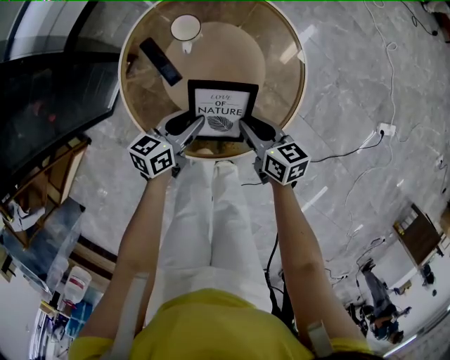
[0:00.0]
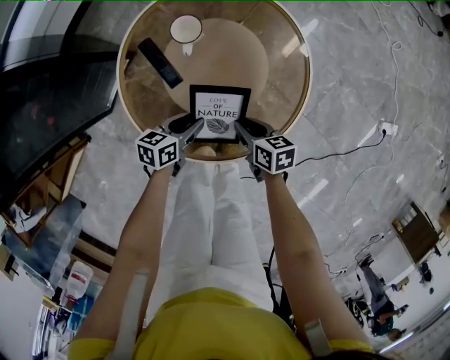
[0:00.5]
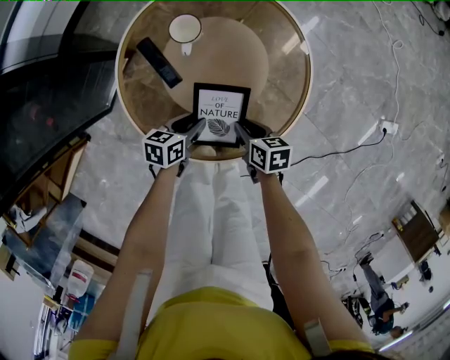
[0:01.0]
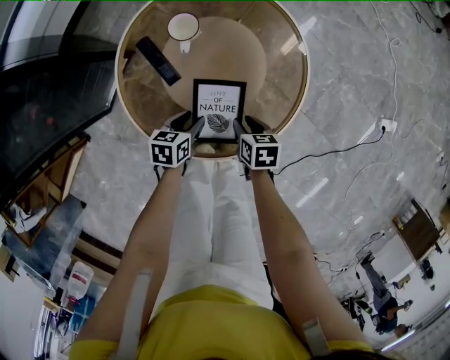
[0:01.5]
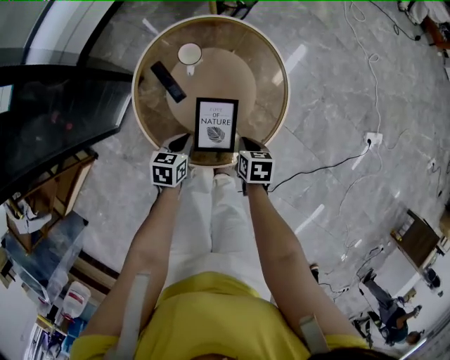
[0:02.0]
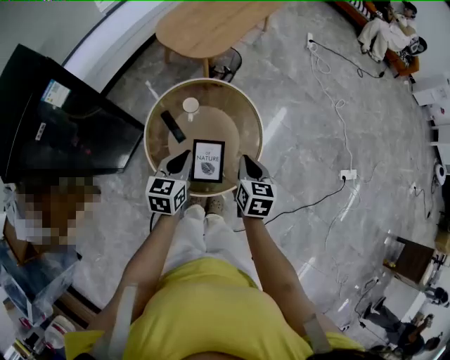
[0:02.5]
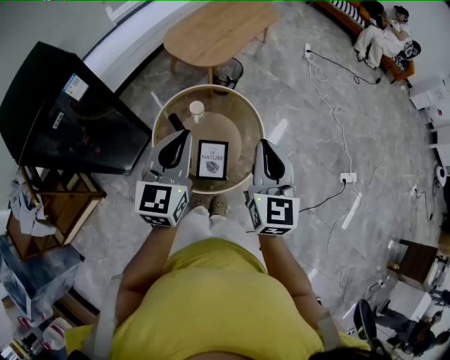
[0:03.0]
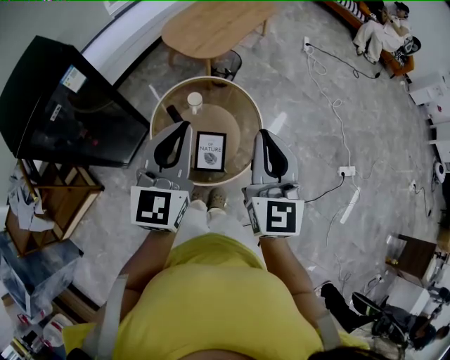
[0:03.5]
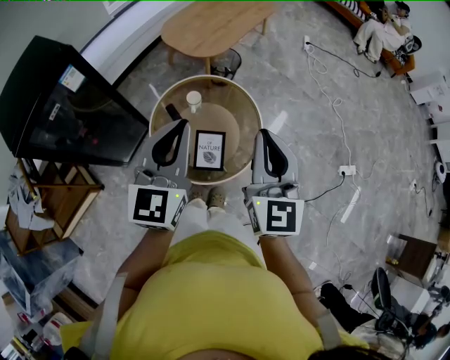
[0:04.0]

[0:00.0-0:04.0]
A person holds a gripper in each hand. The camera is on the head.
0:00.0 to 0:02.0: The right gripper moves about 10 cm downward and comes back, and turns by about 30 degrees; the left gripper goes downward and returns, approximately 10 cm each way, turns by roughly 30 degrees, and closes its fingers.
0:02.0 to 0:04.0: The two grippers go about 50 cm upward. The left gripper angles its fingers upward, by some 50 degrees; the right gripper tilts its fingers some 60 degrees upward.

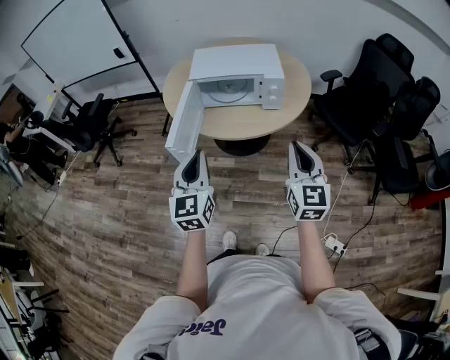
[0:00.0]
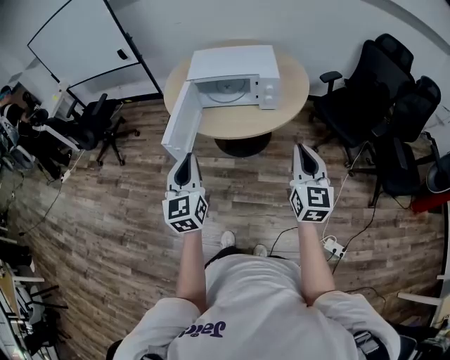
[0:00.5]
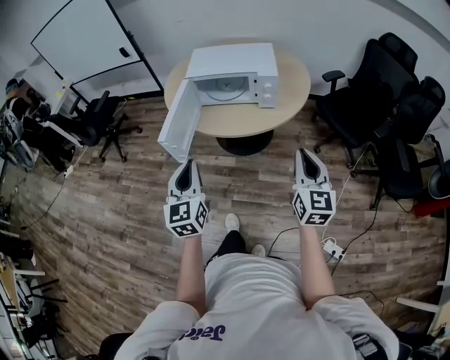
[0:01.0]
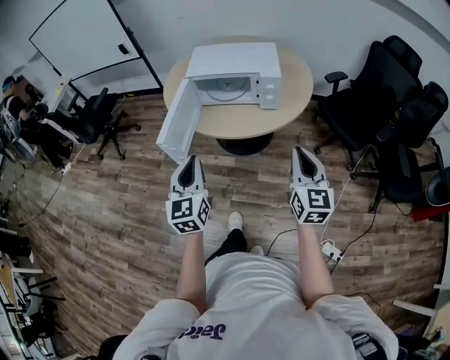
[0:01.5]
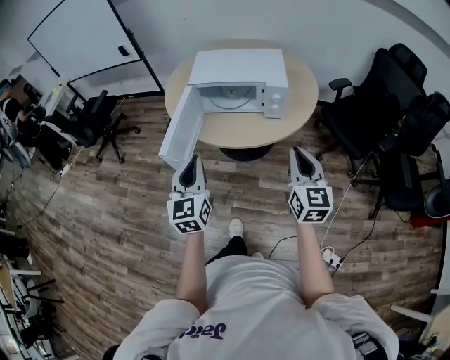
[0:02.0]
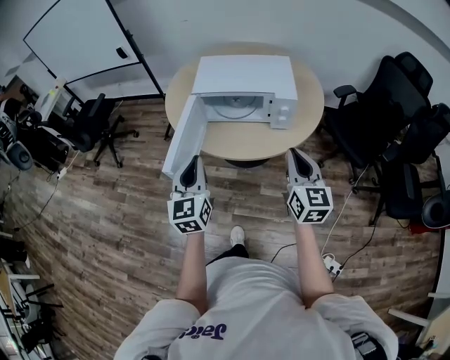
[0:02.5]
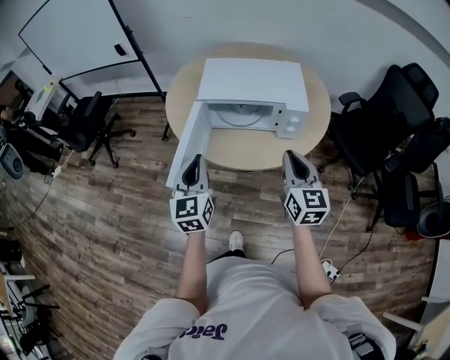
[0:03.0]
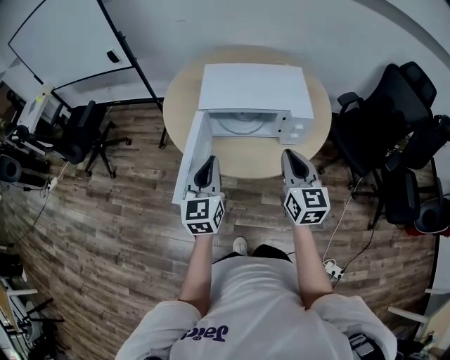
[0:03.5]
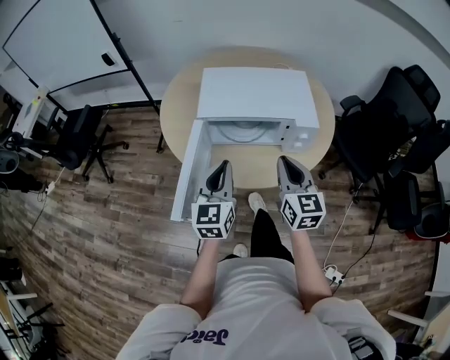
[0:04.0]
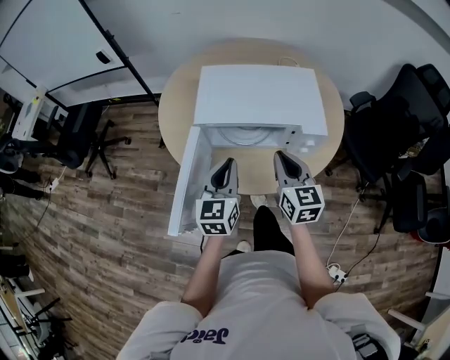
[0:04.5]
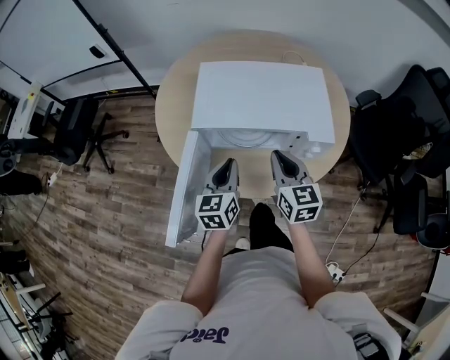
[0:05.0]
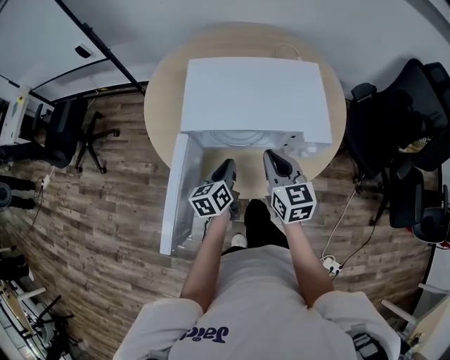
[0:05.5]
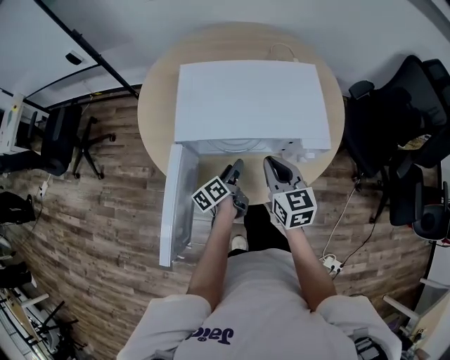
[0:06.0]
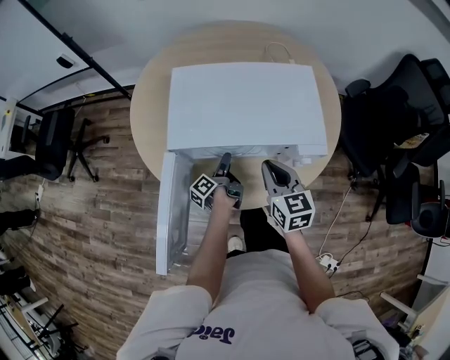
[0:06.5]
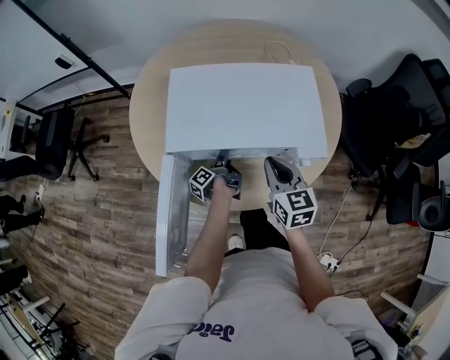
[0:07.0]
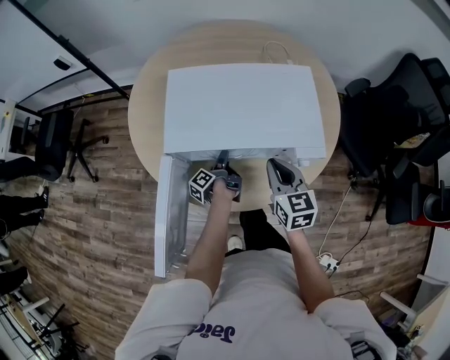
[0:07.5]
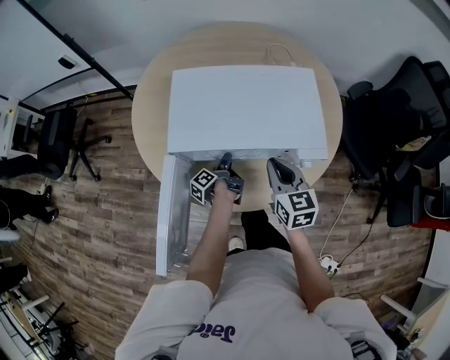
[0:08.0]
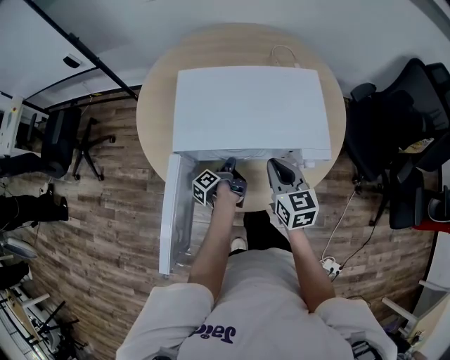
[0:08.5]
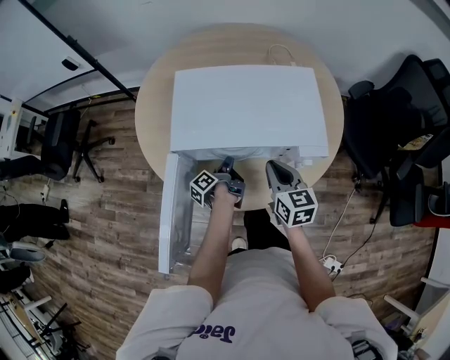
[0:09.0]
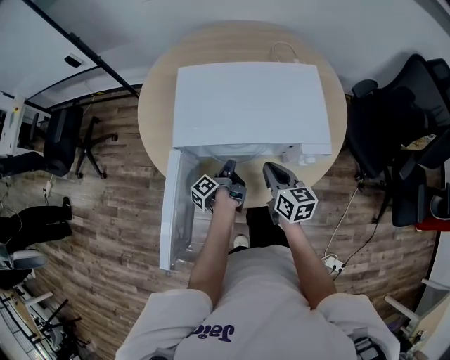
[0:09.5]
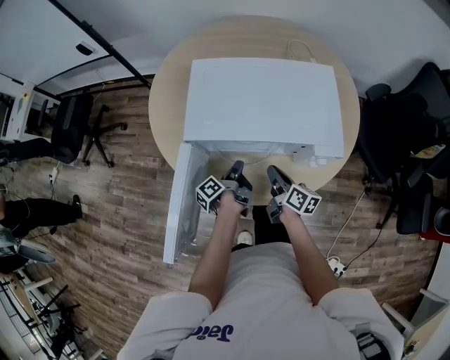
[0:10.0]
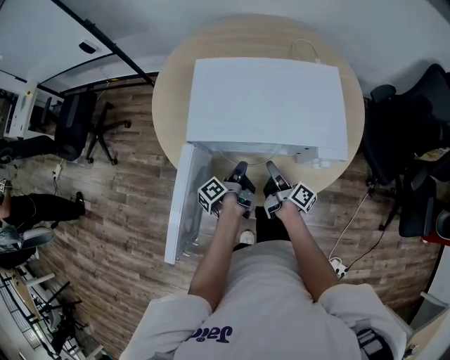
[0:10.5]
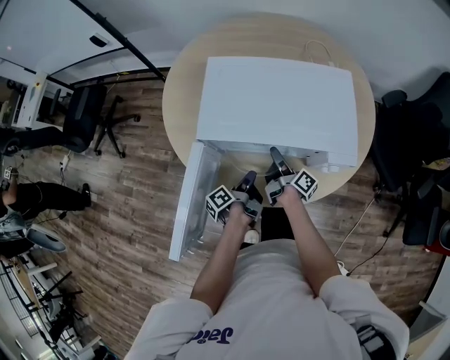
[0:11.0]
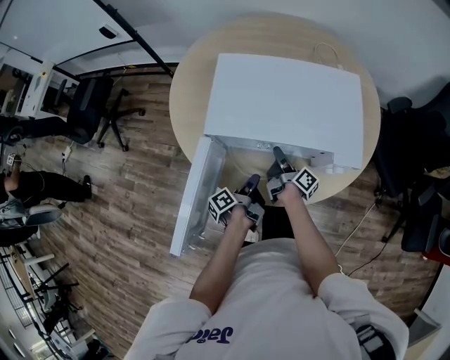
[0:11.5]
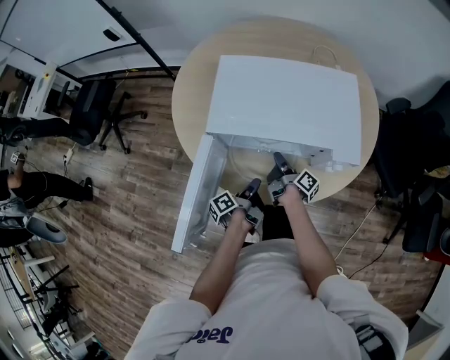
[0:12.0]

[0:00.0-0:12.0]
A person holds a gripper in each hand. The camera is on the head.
0:00.0 to 0:02.0: The right gripper moves about 10 cm.
0:02.0 to 0:04.0: The right gripper shifts by approximately 25 cm.
0:04.0 to 0:06.0: The right gripper moves some 15 cm.
0:08.0 to 0:10.0: The right gripper travels downward by roughly 15 cm, and rolls clockwise, seen from behind, by about 50 degrees.
0:10.0 to 0:12.0: The right gripper shifts by approximately 10 cm, swivels approximately 40 degrees, and opens and closes again.

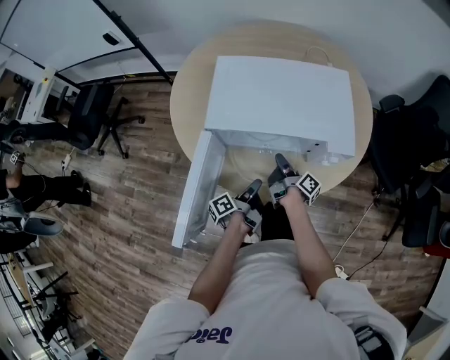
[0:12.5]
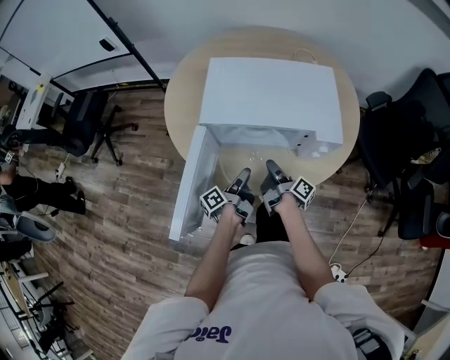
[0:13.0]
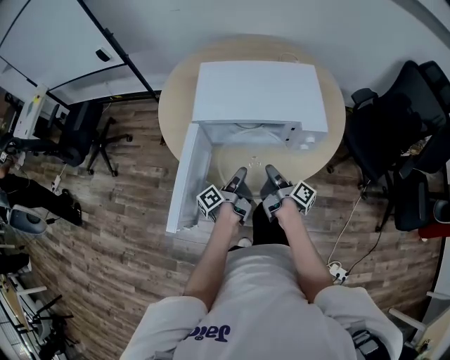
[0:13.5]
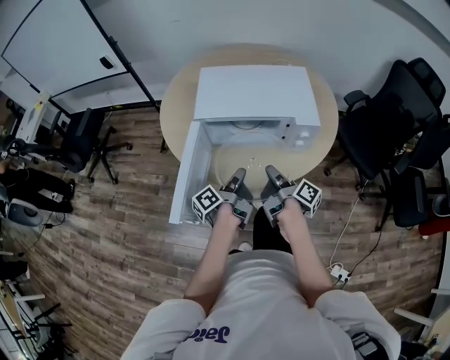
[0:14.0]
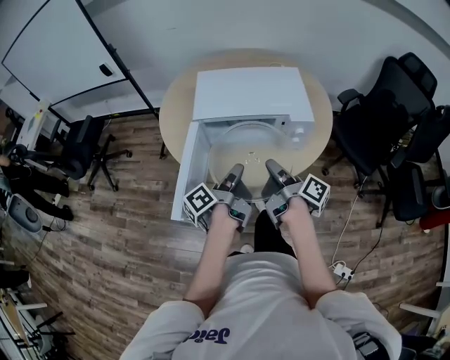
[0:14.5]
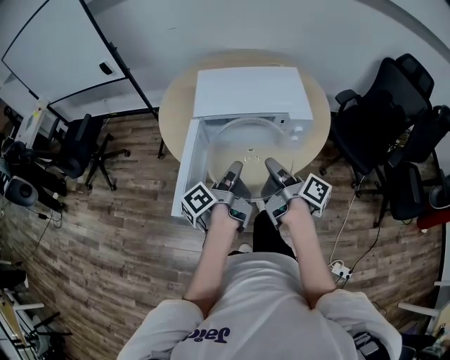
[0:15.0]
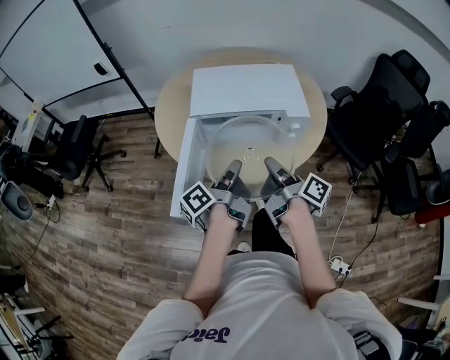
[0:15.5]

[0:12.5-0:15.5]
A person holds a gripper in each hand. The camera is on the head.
0:12.5 to 0:14.0: The right gripper moves some 20 cm.
0:14.0 to 0:15.5: The right gripper heads upward, covering some 10 cm.

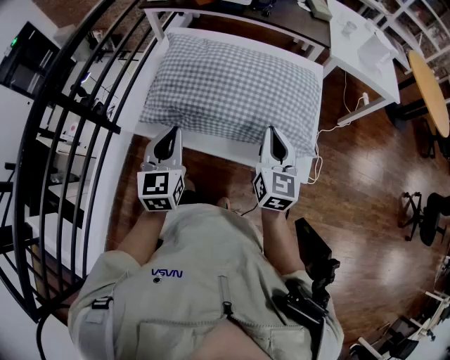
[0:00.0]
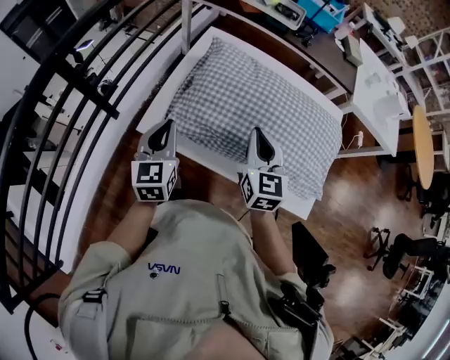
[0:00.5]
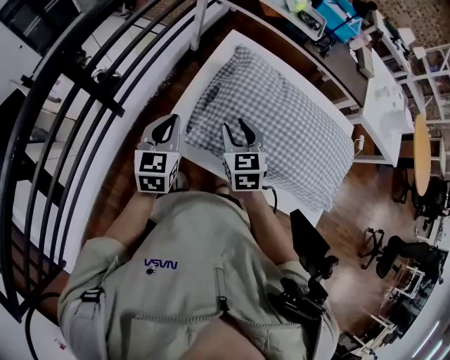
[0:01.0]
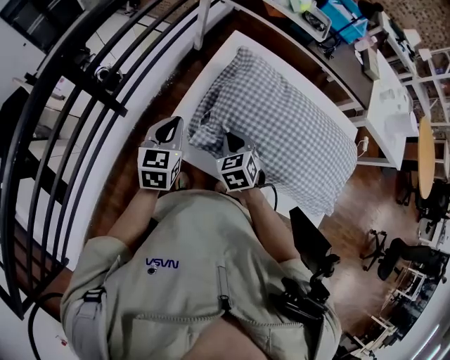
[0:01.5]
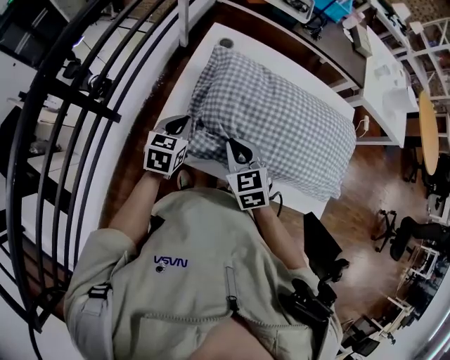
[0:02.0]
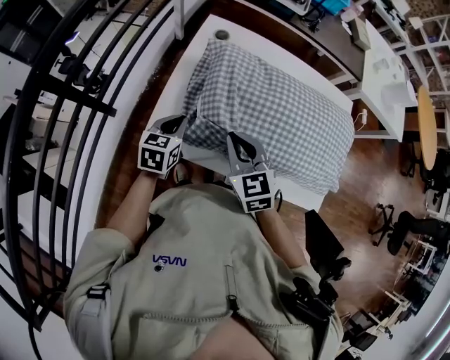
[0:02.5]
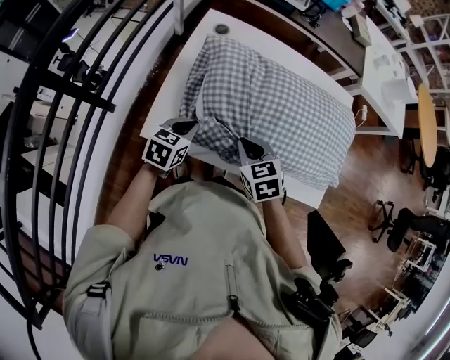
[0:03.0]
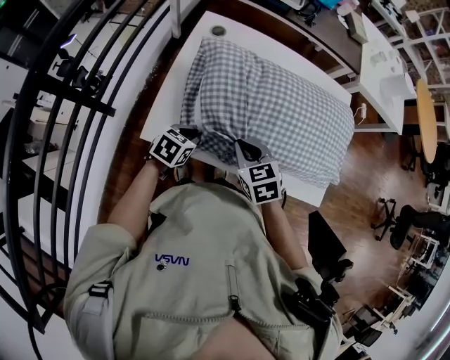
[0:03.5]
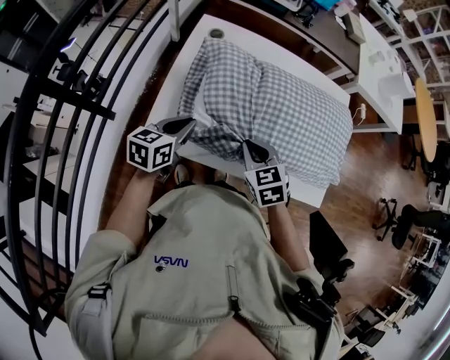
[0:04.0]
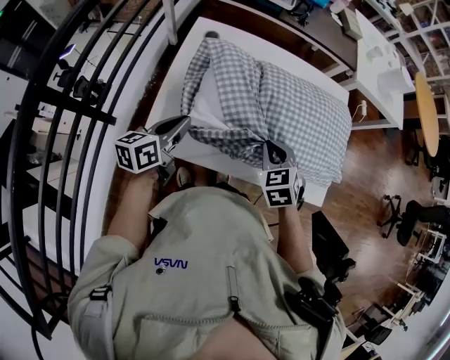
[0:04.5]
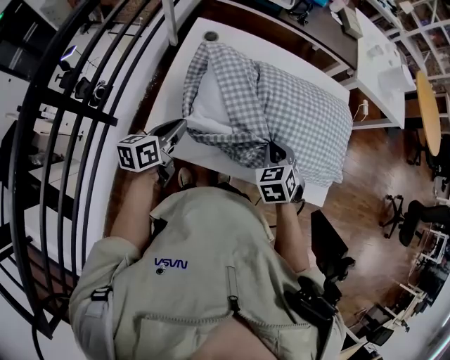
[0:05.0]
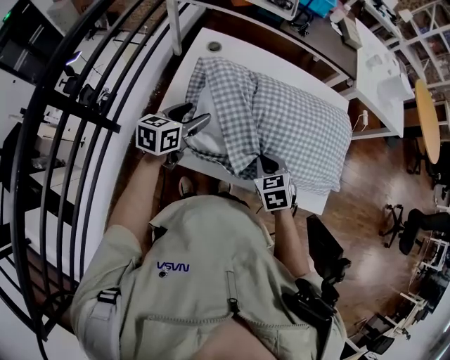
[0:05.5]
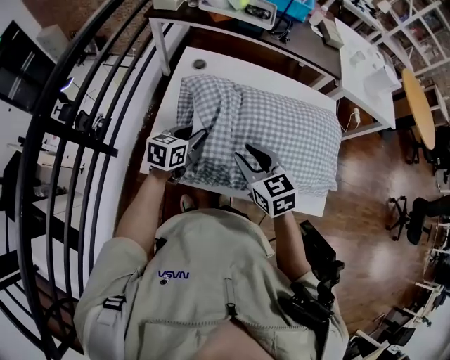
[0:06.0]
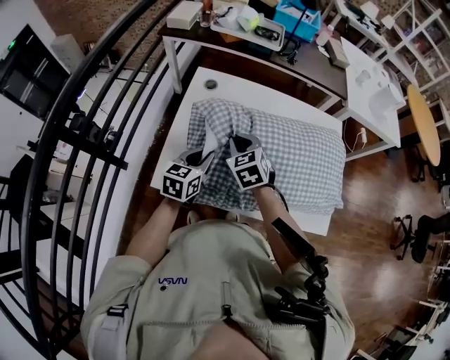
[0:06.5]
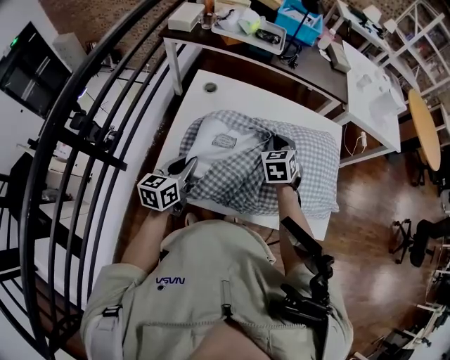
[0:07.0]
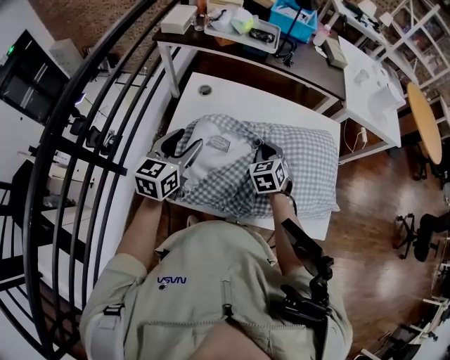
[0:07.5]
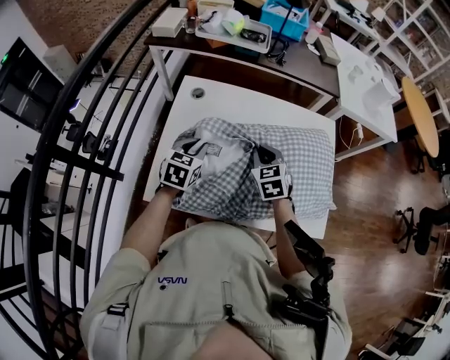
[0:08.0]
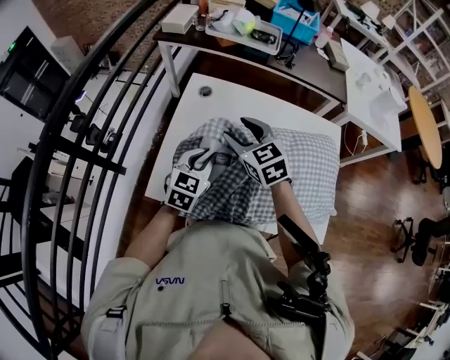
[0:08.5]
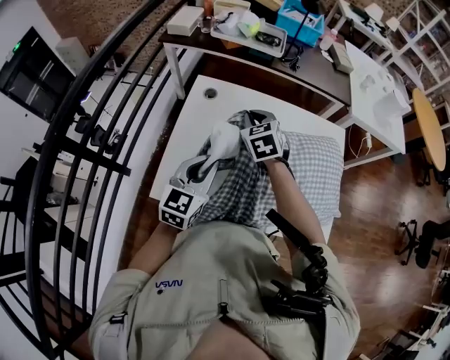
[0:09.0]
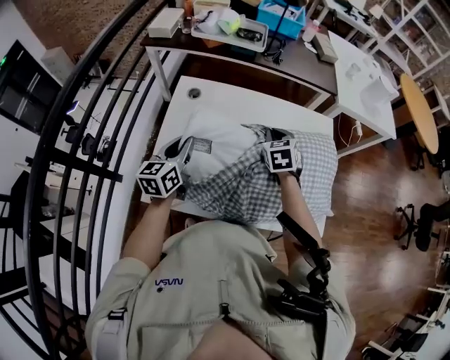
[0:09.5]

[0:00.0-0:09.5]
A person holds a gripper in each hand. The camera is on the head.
0:00.0 to 0:02.0: The right gripper is displaced to the left and forward by some 30 cm, changes its angle by roughly 40 degrees, and opens and closes again, while the left gripper is displaced forward, to the left and downward by approximately 25 cm, and turns by approximately 30 degrees.
0:02.0 to 0:04.0: The right gripper goes roughly 5 cm to the right; the left gripper moves some 5 cm downward and comes back, and changes its angle by approximately 20 degrees.
0:04.0 to 0:05.5: The left gripper goes some 5 cm forward, and opens its fingers. Meanwhile the right gripper heads to the right, covering roughly 5 cm.
0:05.5 to 0:07.5: The left gripper heads upward, covering roughly 10 cm, and closes and opens again. Meanwhile the right gripper is displaced forward by about 15 cm, and opens and closes again.
0:07.5 to 0:09.5: The right gripper goes to the left and returns, approximately 10 cm each way, and opens, then closes again. Meanwhile the left gripper closes up.
